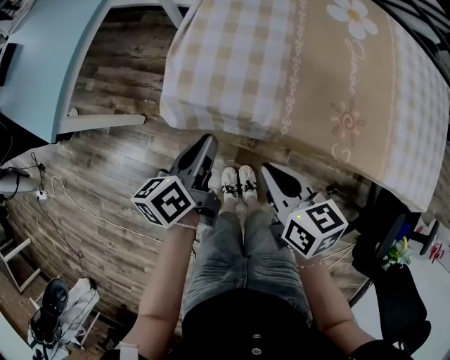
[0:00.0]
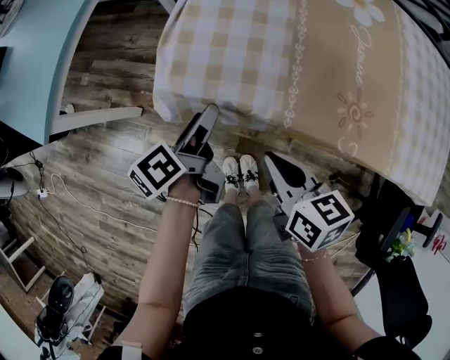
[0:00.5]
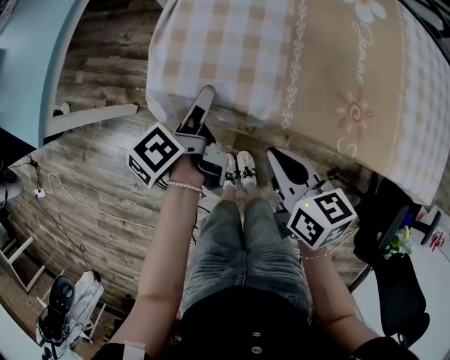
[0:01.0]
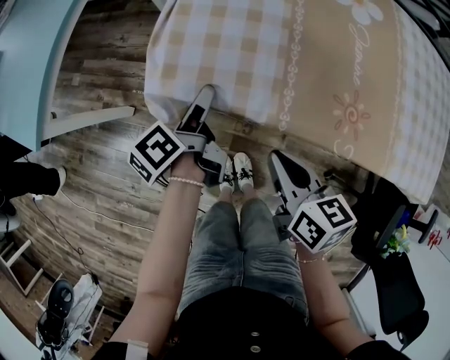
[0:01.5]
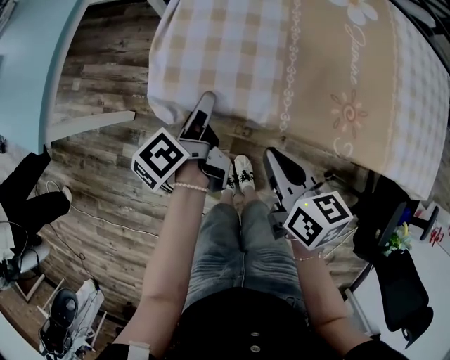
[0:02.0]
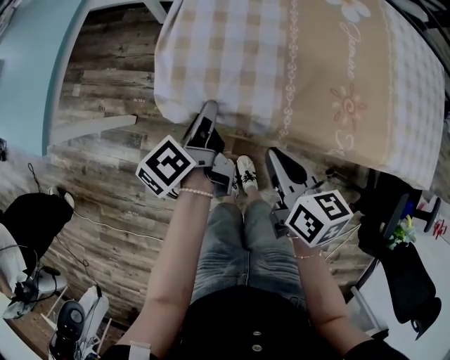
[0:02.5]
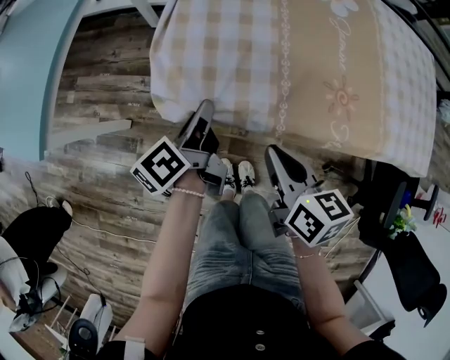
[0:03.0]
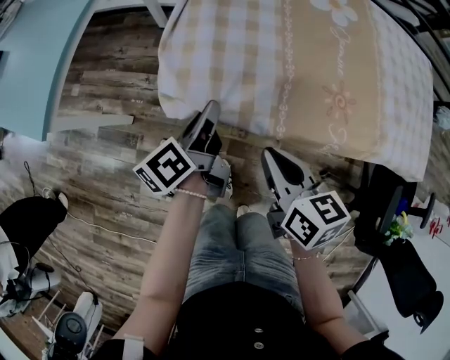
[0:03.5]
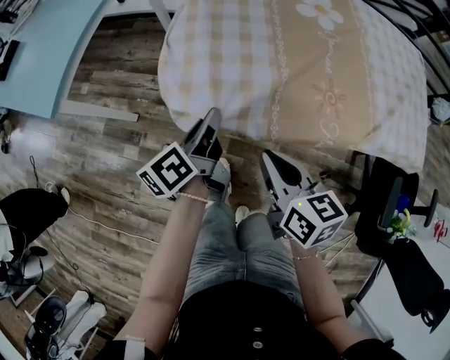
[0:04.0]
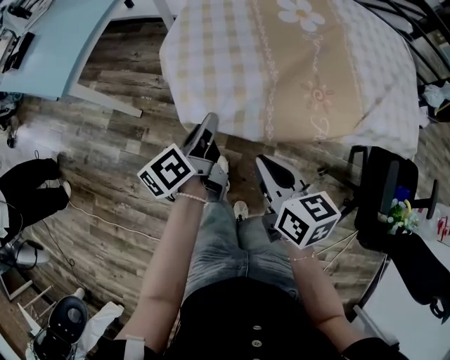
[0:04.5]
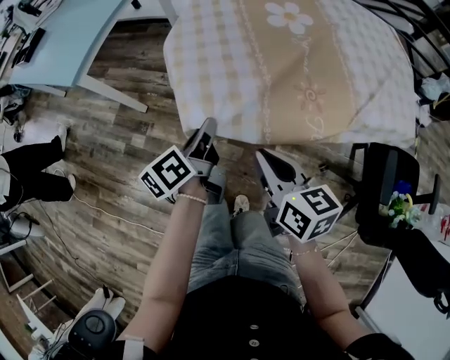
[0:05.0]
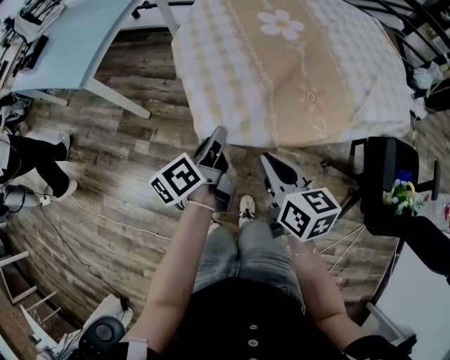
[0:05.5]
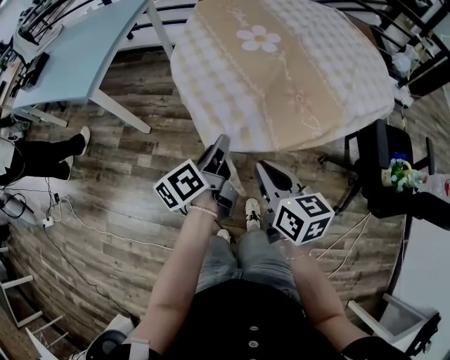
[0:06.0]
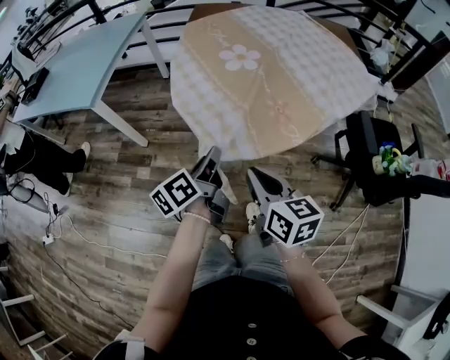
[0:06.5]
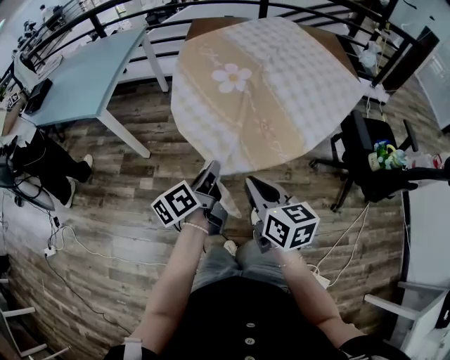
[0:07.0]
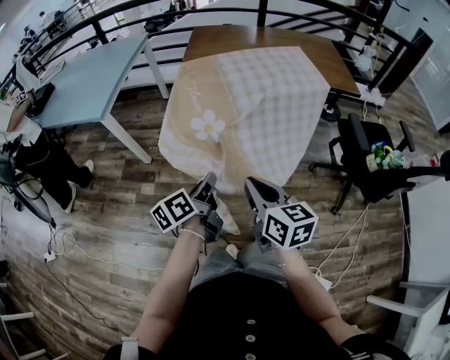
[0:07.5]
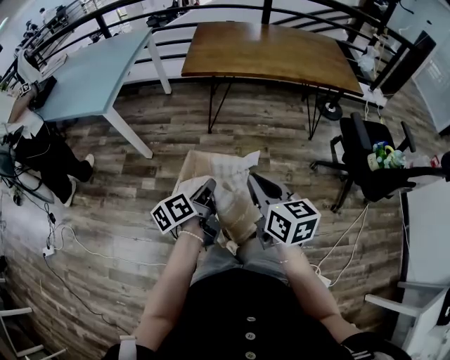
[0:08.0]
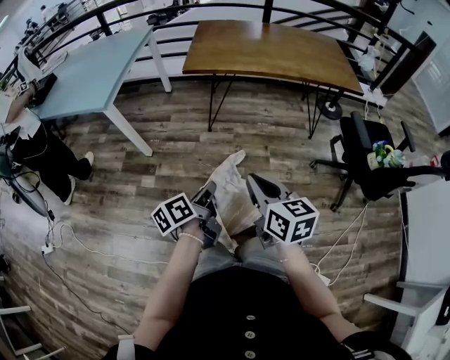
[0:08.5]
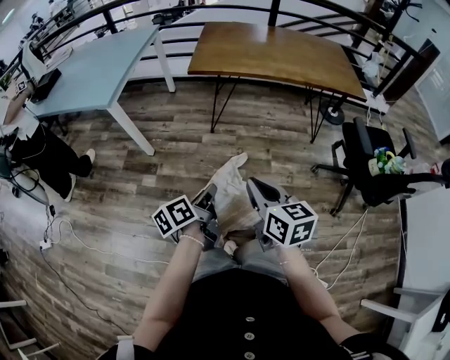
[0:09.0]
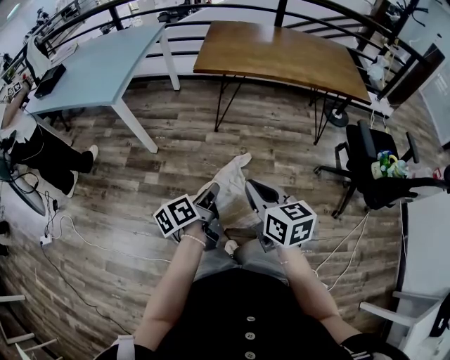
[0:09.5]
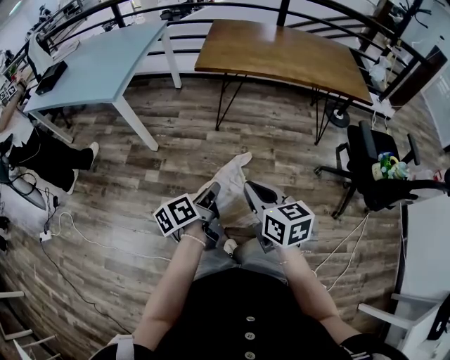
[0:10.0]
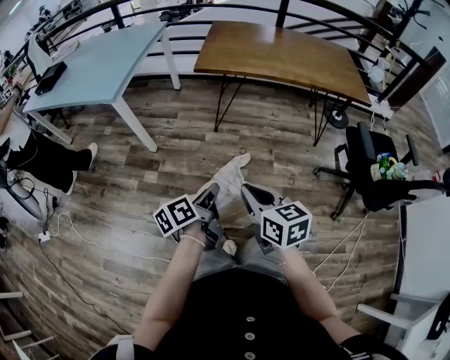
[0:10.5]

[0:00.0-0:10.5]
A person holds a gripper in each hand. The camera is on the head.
0:00.0 to 0:02.0: The left gripper heads forward, covering approximately 10 cm, swivels roughly 20 degrees, and opens its fingers.
0:02.0 to 0:04.0: Both grippers move backward and upward, roughly 15 cm. The left gripper closes up.
0:04.0 to 0:06.5: Both grippers travel together backward, approximately 35 cm.
0:06.5 to 0:08.5: The right gripper is displaced backward by roughly 5 cm, while the left gripper heads backward, to the left and downward, covering some 15 cm.
0:08.5 to 0:10.5: The grippers stay close to where they were, moving slightly.

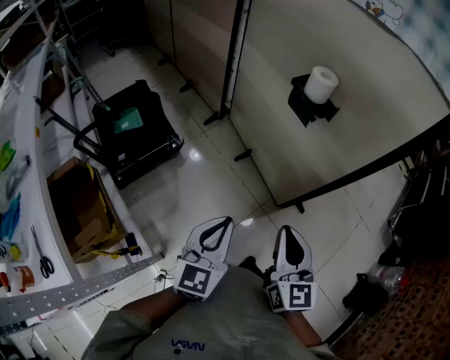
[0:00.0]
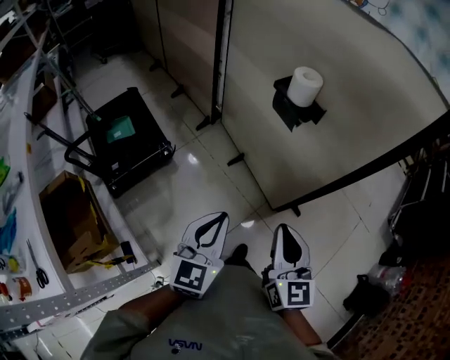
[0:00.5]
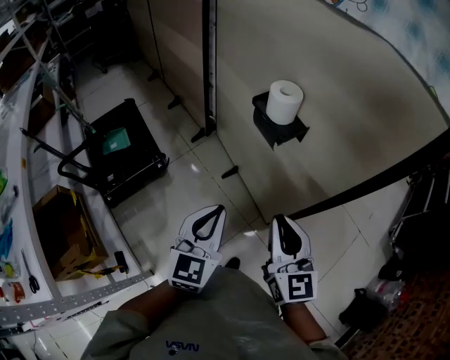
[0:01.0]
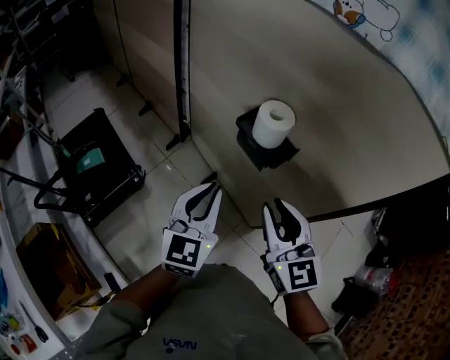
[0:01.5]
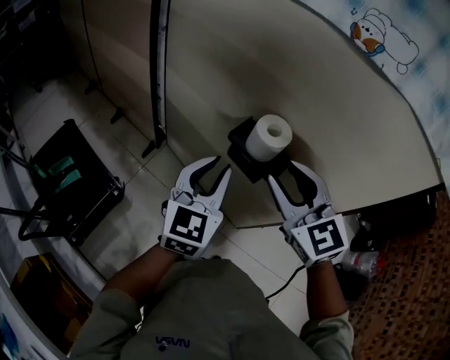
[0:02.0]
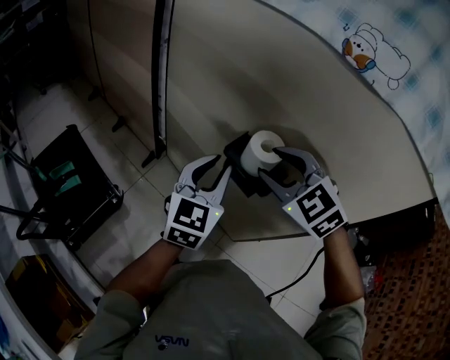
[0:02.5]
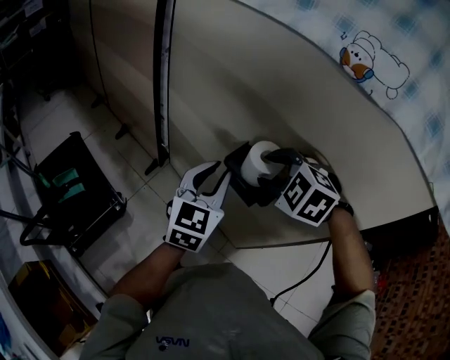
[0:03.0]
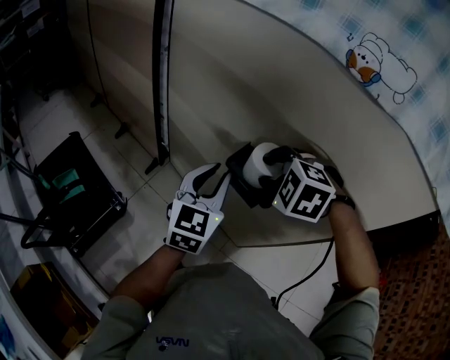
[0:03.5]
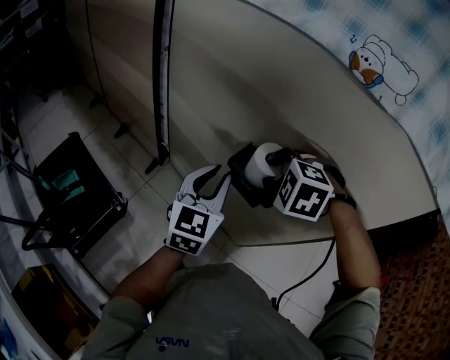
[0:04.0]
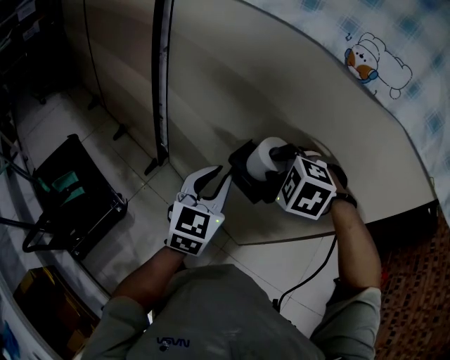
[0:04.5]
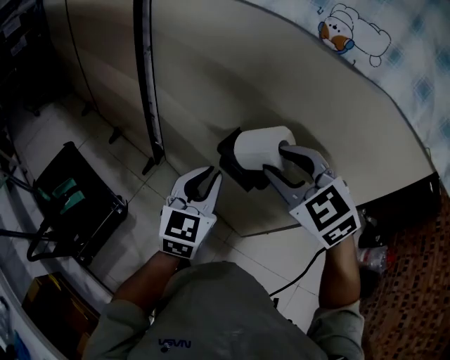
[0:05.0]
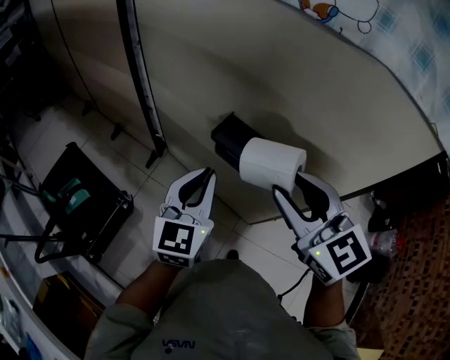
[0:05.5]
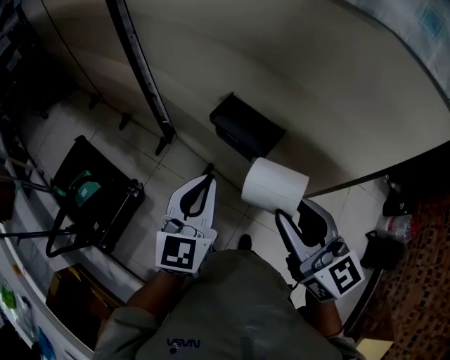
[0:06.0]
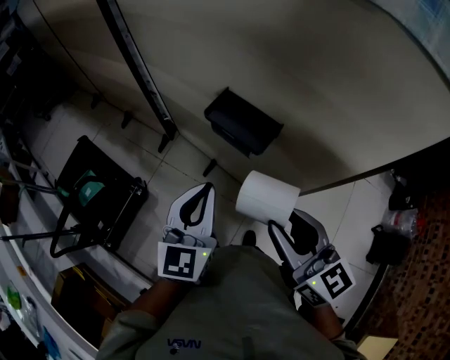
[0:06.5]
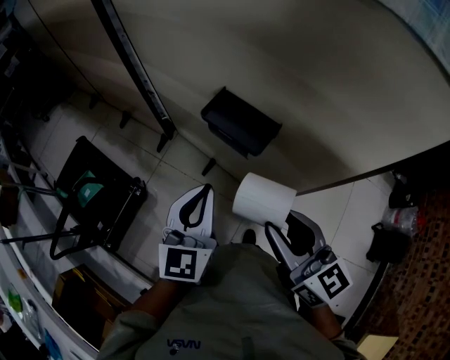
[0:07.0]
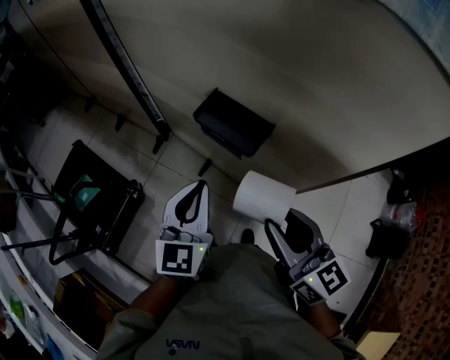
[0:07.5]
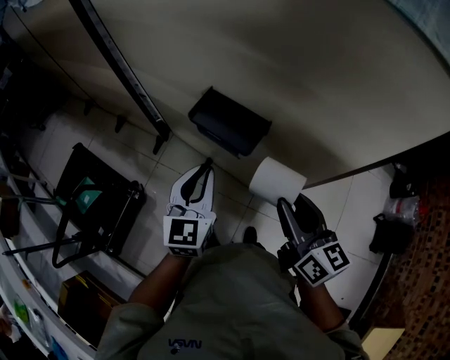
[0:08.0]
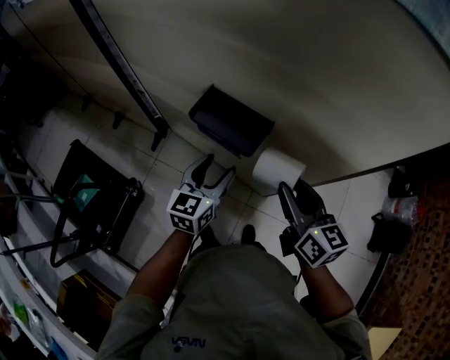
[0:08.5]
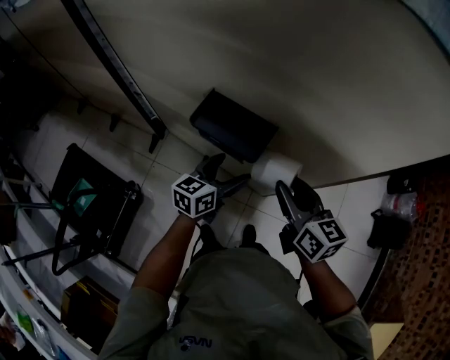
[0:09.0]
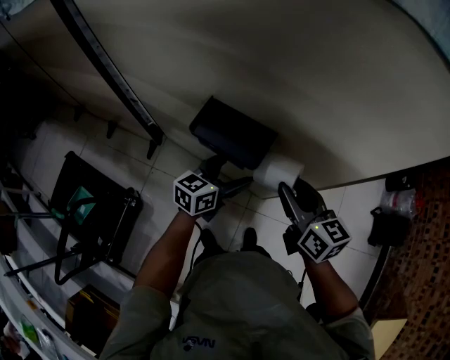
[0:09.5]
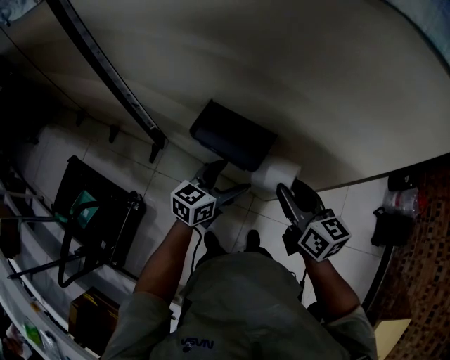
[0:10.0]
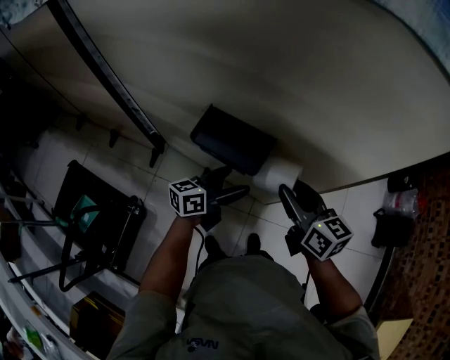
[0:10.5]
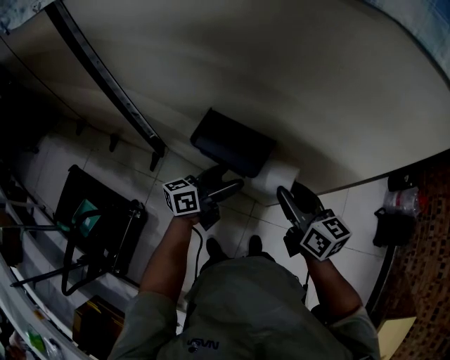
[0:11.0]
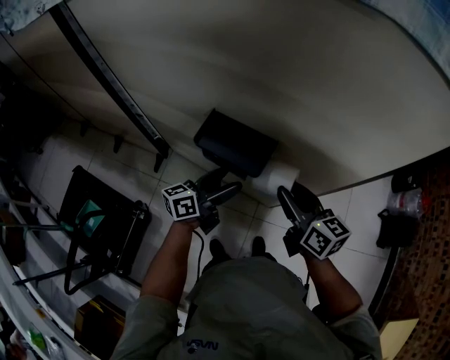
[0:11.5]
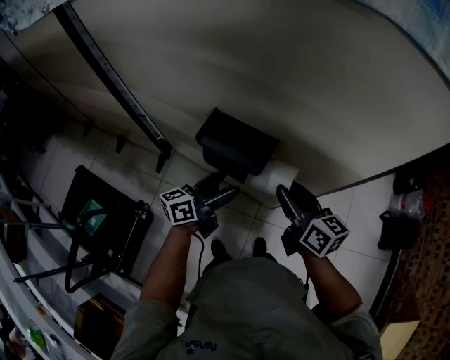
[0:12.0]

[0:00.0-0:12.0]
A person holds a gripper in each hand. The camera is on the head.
0:00.0 to 0:02.0: The grippers both shift forward by some 40 cm. The right gripper swivels approximately 30 degrees, and opens up.
0:02.0 to 0:04.0: The right gripper moves forward and downward, approximately 10 cm, and angles its fingers downward, by approximately 50 degrees. Meanwhile the left gripper travels forward by roughly 5 cm.
0:04.0 to 0:06.0: The left gripper moves backward, roughly 10 cm. Meanwhile the right gripper goes some 20 cm backward, and angles its fingers upward, by about 60 degrees.
0:06.0 to 0:08.0: The right gripper heads downward and to the right, covering roughly 10 cm, and rotates approximately 20 degrees, while the left gripper goes about 10 cm downward.
0:08.0 to 0:10.0: The right gripper moves forward, approximately 5 cm; the left gripper moves downward, to the right and forward, roughly 10 cm, rotates about 40 degrees, and opens.
0:10.0 to 0:12.0: The left gripper swivels some 30 degrees.

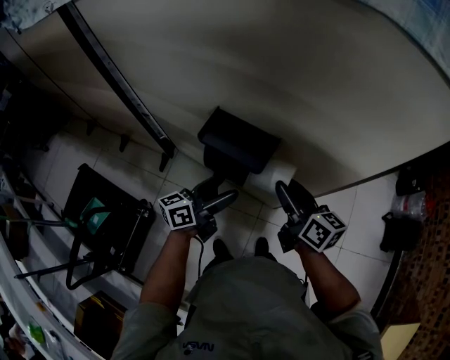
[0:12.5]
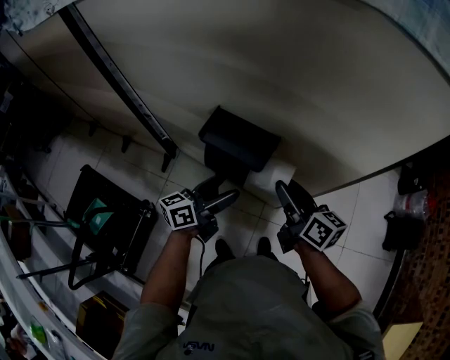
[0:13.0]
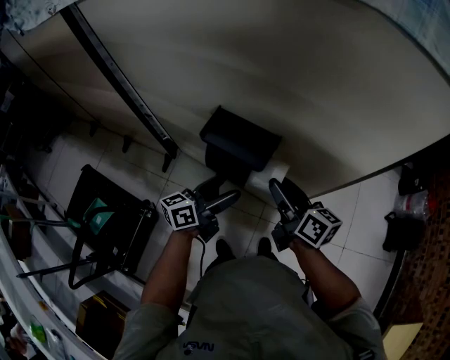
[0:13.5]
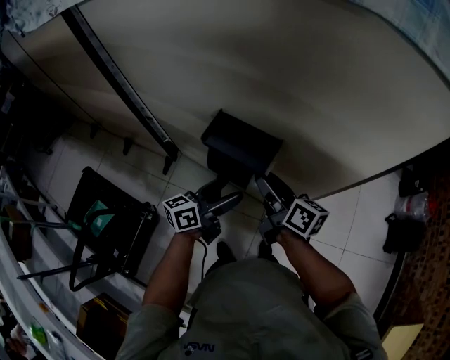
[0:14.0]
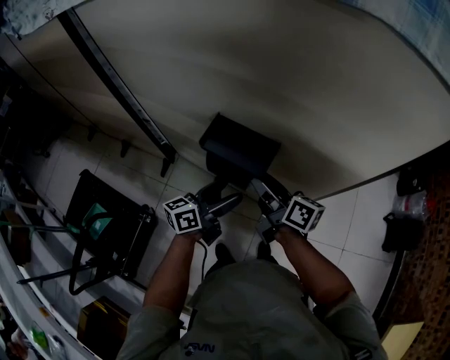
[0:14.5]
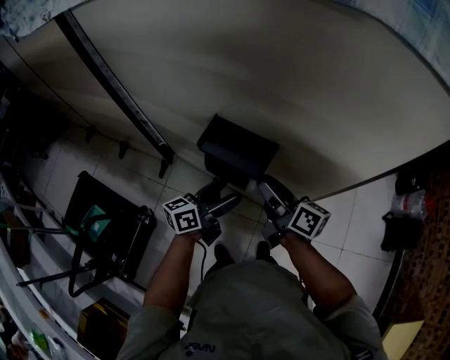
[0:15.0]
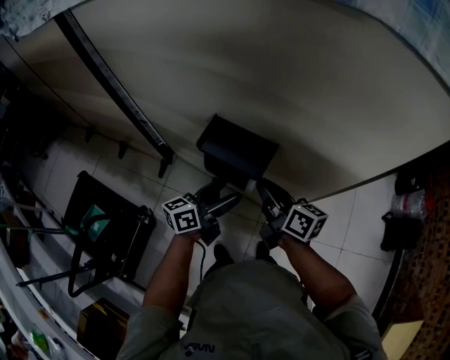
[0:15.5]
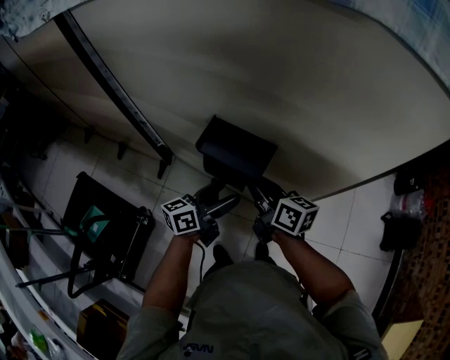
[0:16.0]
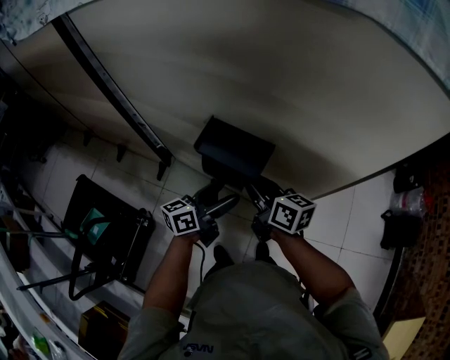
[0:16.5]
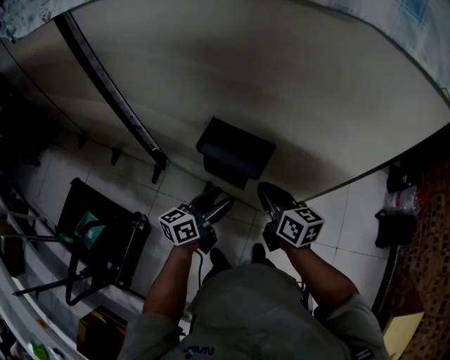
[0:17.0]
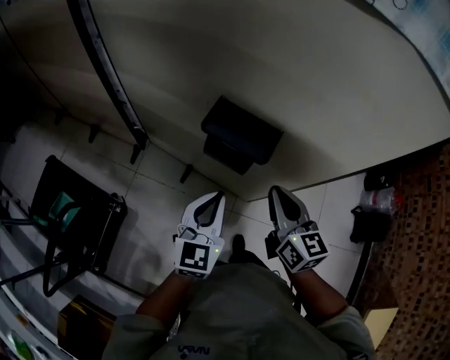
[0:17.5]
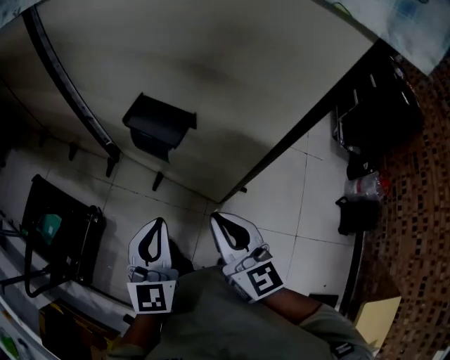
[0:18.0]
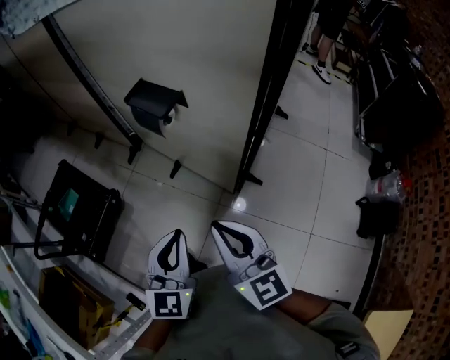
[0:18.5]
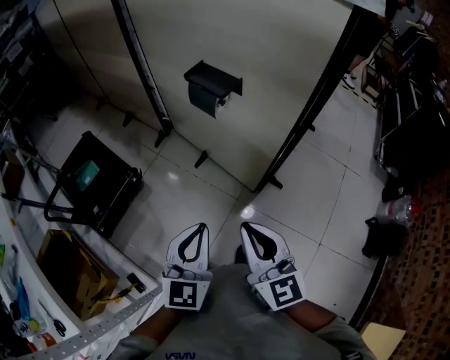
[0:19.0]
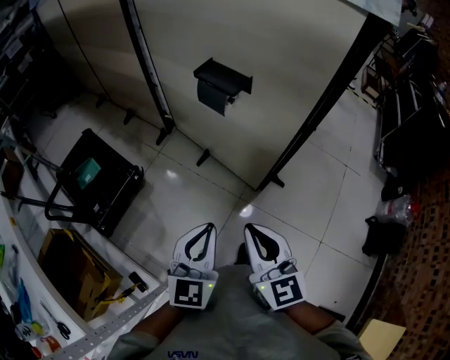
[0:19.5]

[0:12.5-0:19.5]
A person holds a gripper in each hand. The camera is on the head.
0:12.5 to 0:14.5: The right gripper is displaced to the left by roughly 10 cm.
0:14.5 to 0:16.0: The right gripper closes.
0:16.0 to 0:17.5: The grippers both shift backward and upward by approximately 10 cm. The left gripper rotates around the line of its fingers by approximately 40 degrees, clockwise from behind, and closes up, while the right gripper swivels approximately 30 degrees.
0:17.5 to 0:19.5: Both grippers travel together backward, about 35 cm. The right gripper swivels about 20 degrees.
